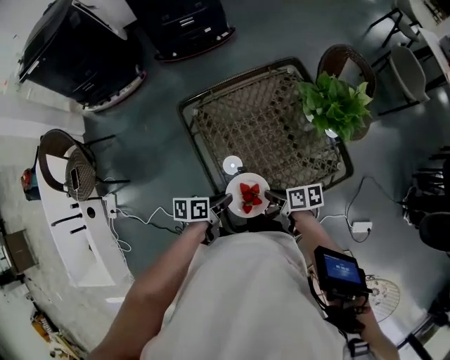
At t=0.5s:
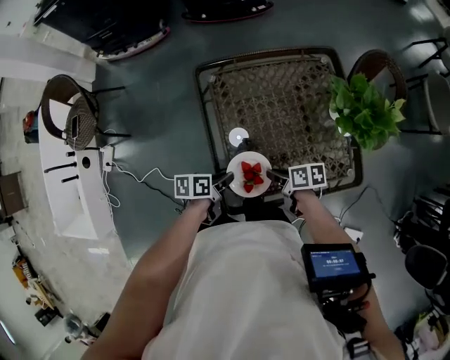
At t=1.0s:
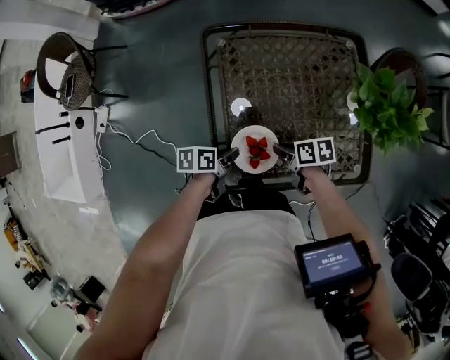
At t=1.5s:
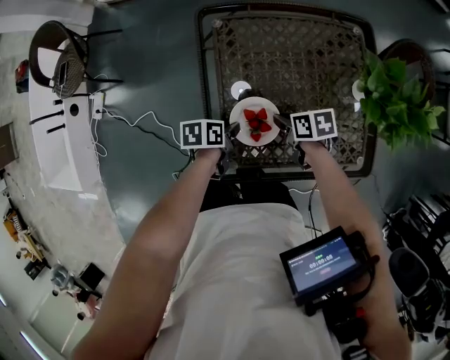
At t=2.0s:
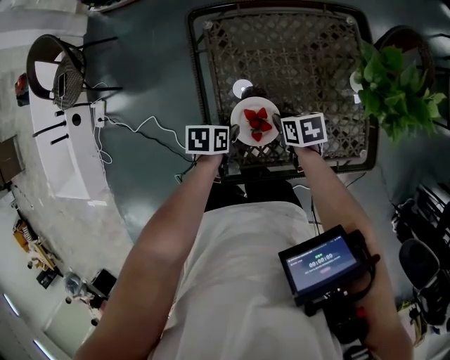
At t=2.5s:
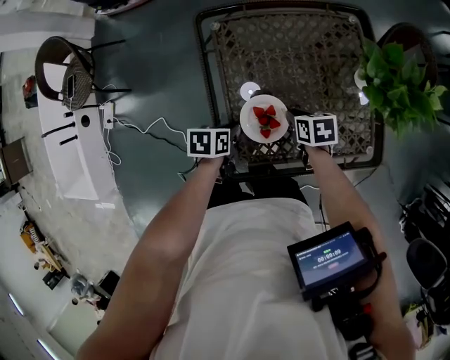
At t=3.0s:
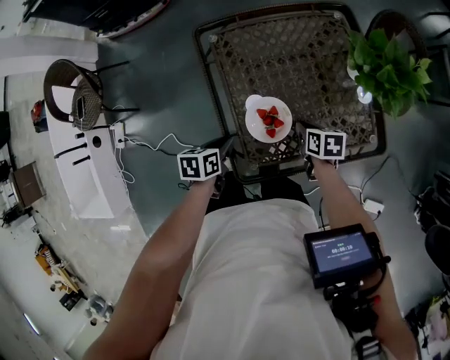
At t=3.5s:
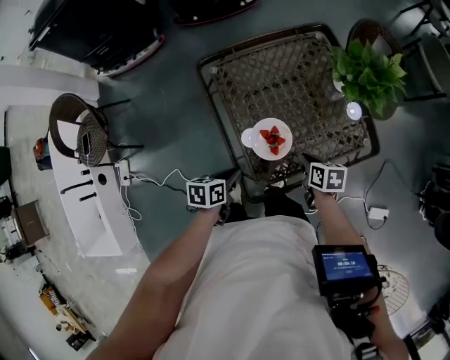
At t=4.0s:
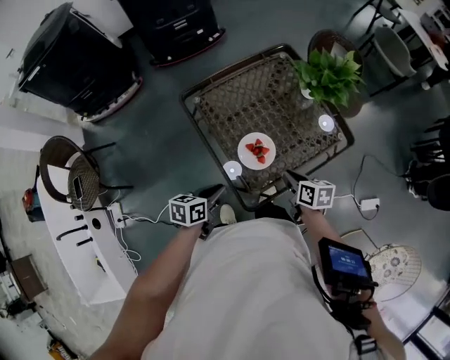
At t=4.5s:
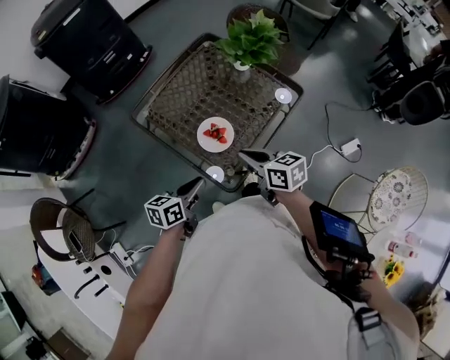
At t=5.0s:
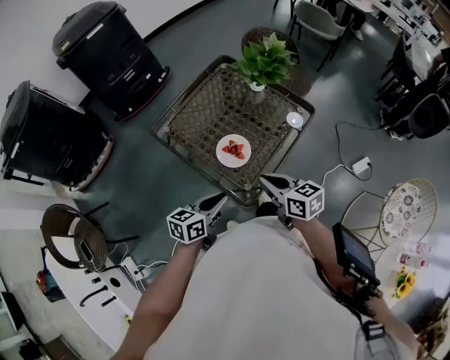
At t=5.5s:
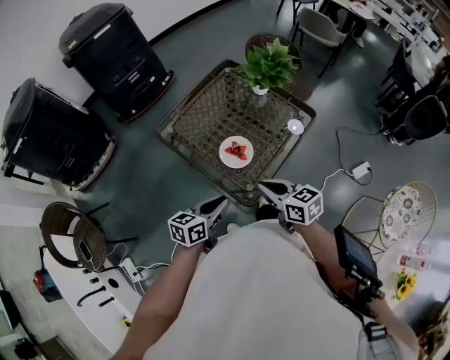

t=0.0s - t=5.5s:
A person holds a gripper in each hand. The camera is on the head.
t=0.0s - t=2.0s: The grippers both shift downward by about 15 cm. The right gripper turns by some 30 degrees. The left gripper changes its angle by approximately 20 degrees.
t=2.0s - t=3.5s: The right gripper moves roughly 10 cm, and changes its angle by some 30 degrees. Meanwhile the left gripper moves about 15 cm.
t=3.5s - t=5.5s: The right gripper shifts about 30 cm upward, backward and to the left, and swivels approximately 30 degrees; the left gripper is displaced upward and backward by approximately 15 cm, and turns by roughly 50 degrees.

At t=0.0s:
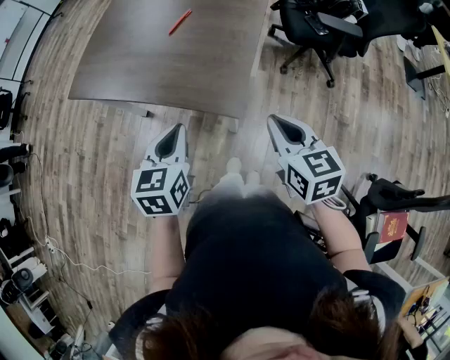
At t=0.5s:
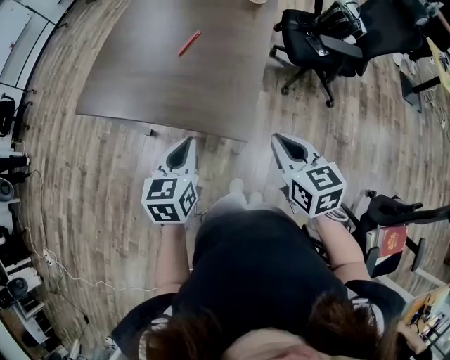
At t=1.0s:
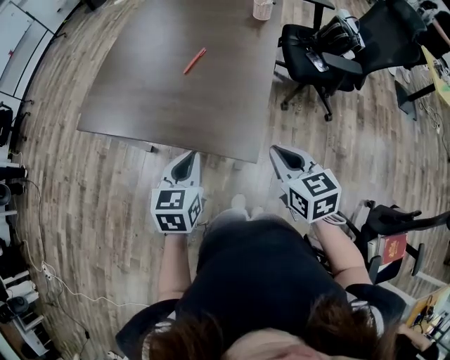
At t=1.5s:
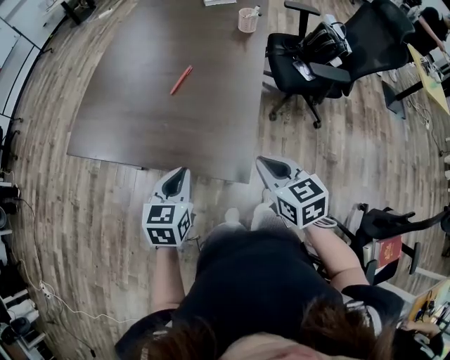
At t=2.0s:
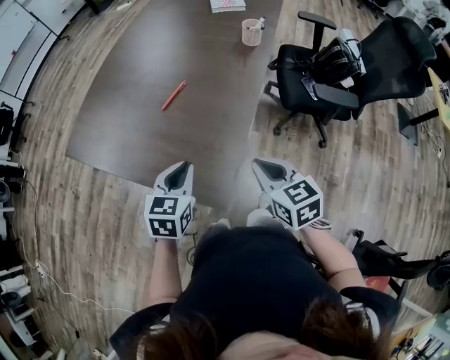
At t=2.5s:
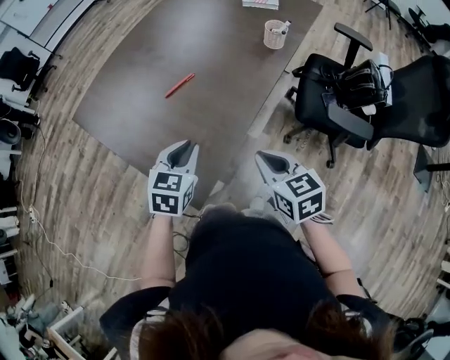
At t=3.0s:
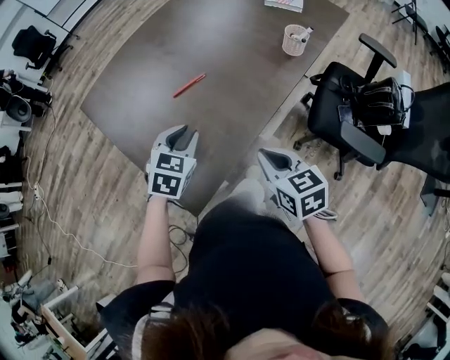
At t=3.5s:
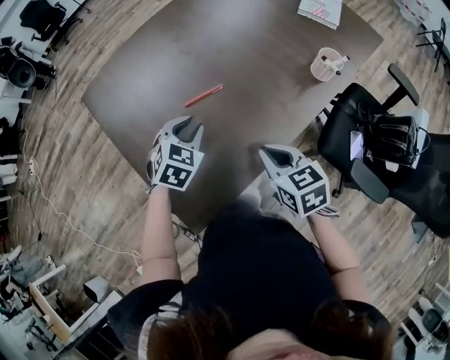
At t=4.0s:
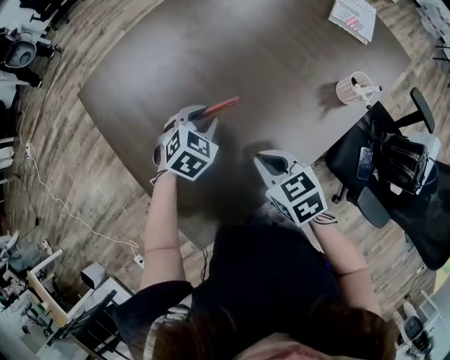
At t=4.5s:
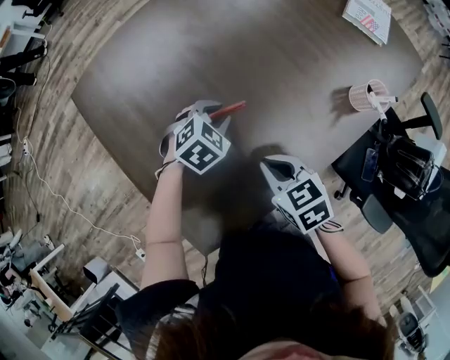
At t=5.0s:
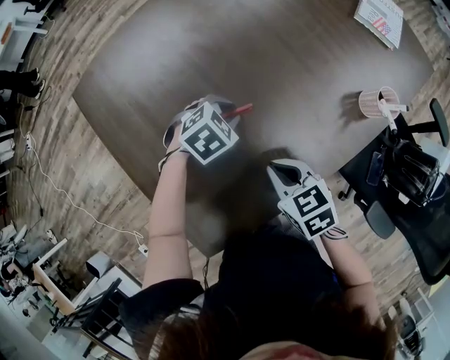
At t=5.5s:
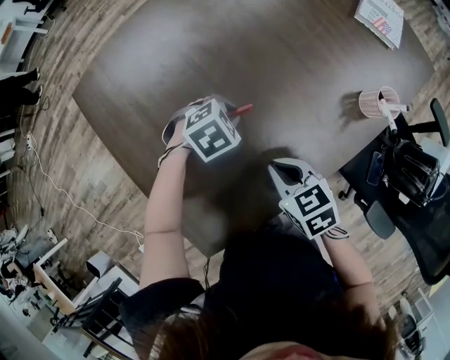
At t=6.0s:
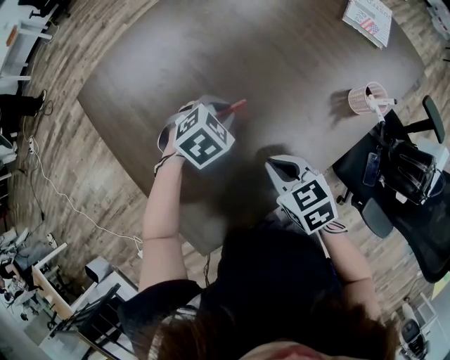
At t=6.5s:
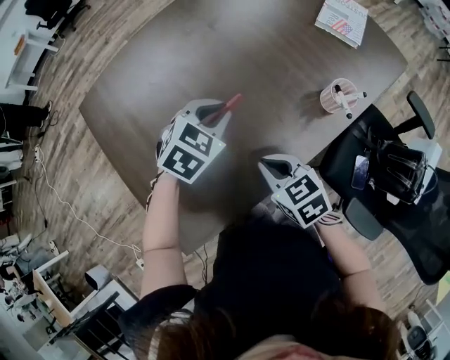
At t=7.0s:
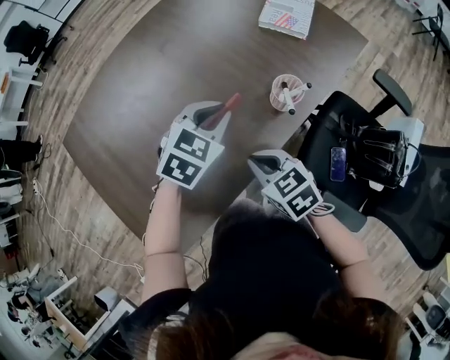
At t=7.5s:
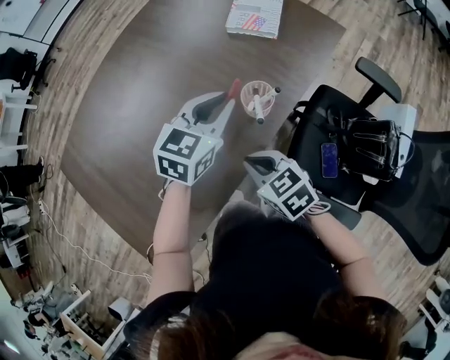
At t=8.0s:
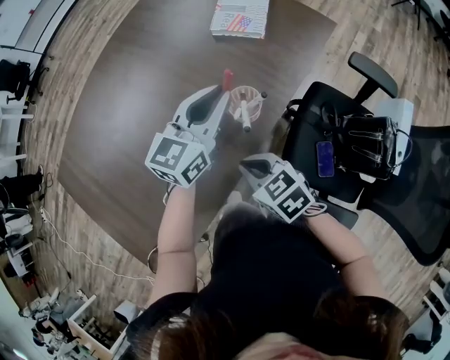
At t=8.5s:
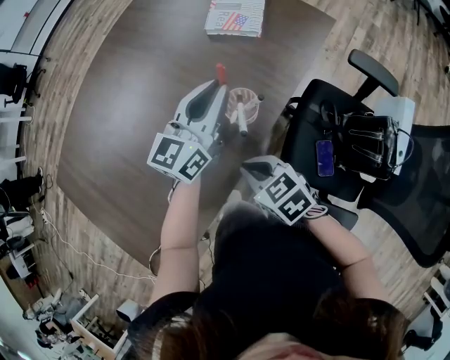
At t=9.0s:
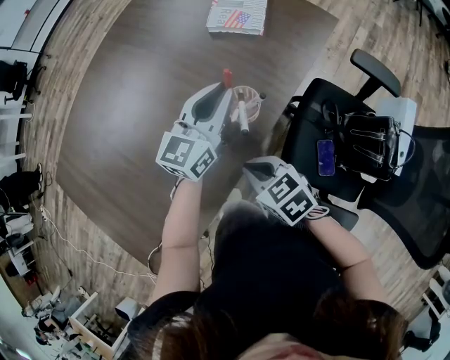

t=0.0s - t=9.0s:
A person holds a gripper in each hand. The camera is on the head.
t=0.0s - t=2.0s: The two grippers go about 15 cm forward.
t=2.0s - t=4.5s: The right gripper shifts by about 30 cm, and swivels some 50 degrees. The left gripper moves about 35 cm, and swivels approximately 30 degrees.
t=4.5s - t=7.0s: The left gripper goes some 30 cm to the right and upward; the right gripper is displaced to the right by approximately 20 cm.
t=7.0s - t=9.0s: The left gripper is displaced to the right and forward by some 15 cm, and angles its fingers upward, by approximately 40 degrees. The right gripper goes some 10 cm to the right.

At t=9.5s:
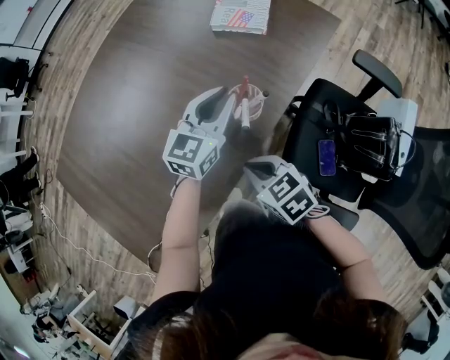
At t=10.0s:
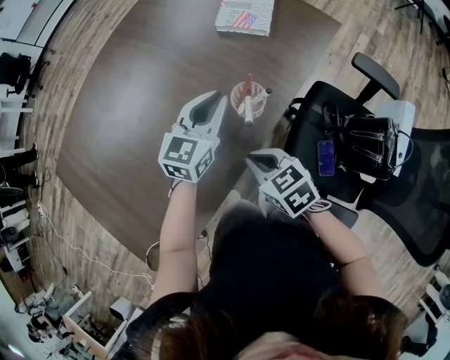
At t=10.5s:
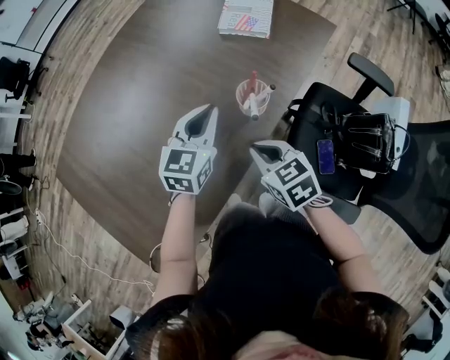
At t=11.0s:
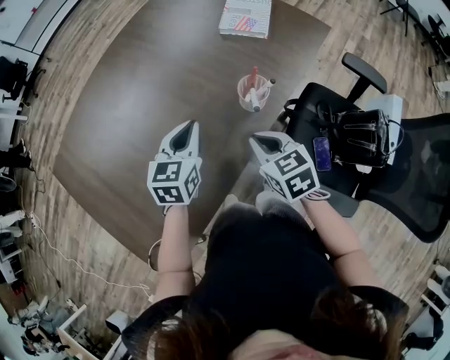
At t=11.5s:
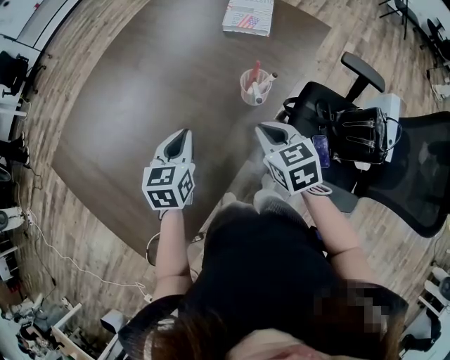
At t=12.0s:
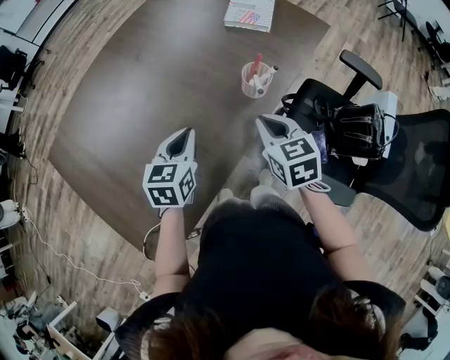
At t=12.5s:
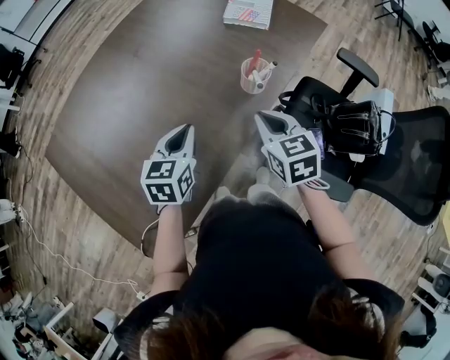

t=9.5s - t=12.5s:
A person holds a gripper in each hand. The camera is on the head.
t=9.5s - t=11.0s: The right gripper shifts by approximately 5 cm. The left gripper heads to the left and backward, covering about 15 cm, and turns by roughly 20 degrees.
t=11.0s - t=12.5s: The left gripper moves backward, some 5 cm.

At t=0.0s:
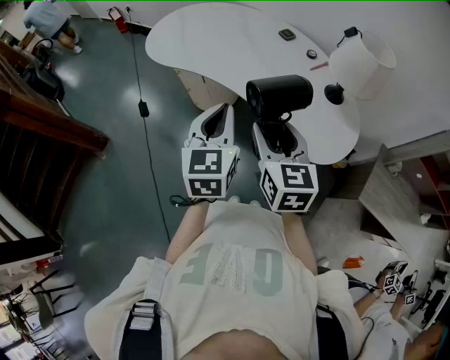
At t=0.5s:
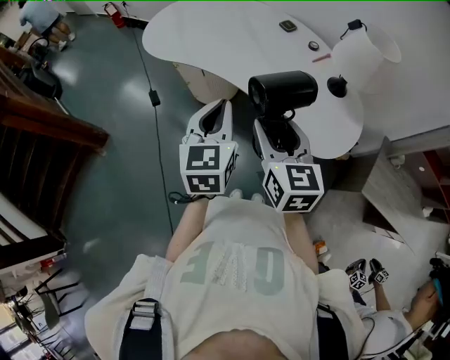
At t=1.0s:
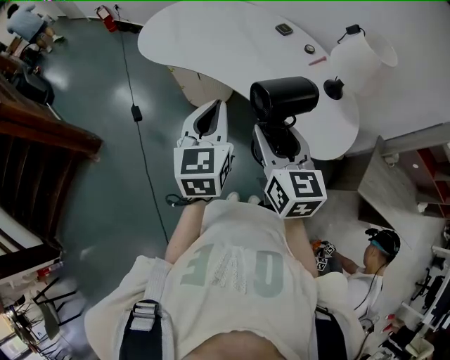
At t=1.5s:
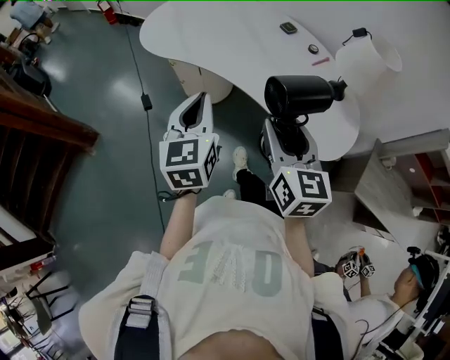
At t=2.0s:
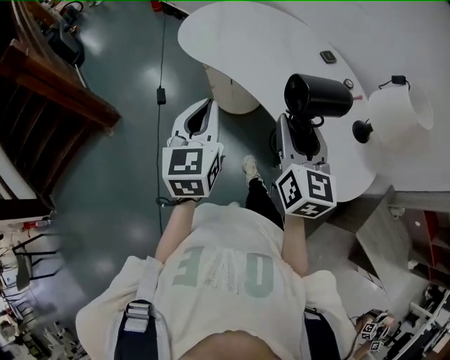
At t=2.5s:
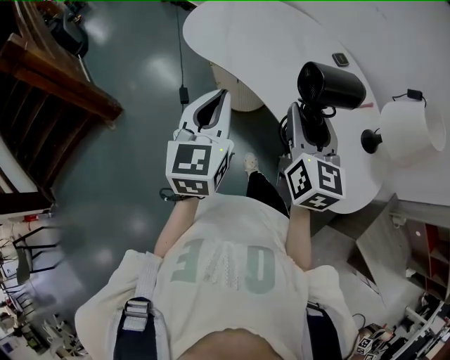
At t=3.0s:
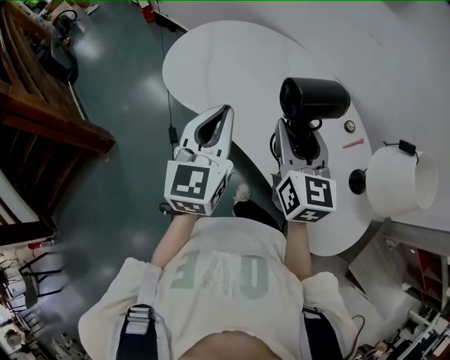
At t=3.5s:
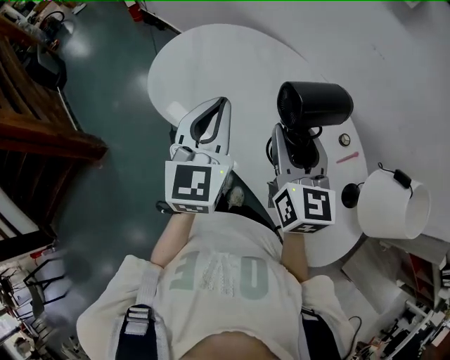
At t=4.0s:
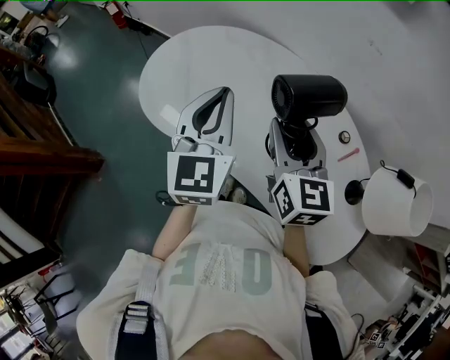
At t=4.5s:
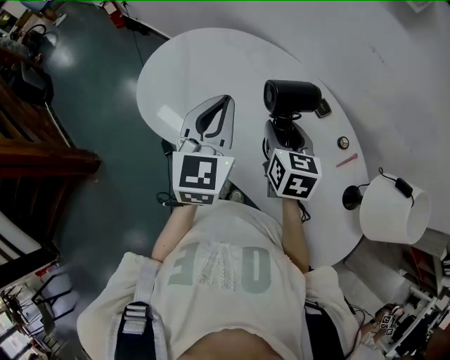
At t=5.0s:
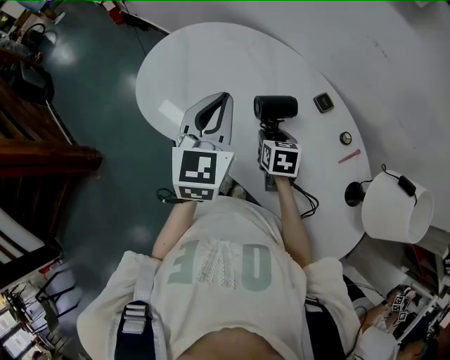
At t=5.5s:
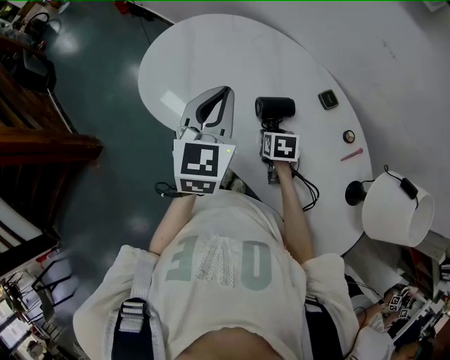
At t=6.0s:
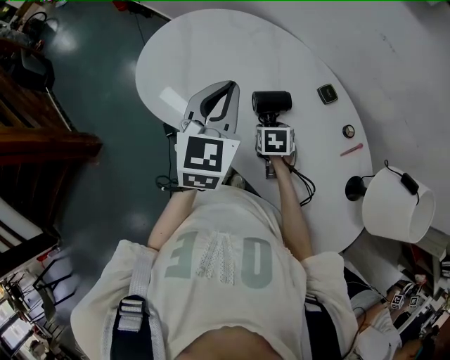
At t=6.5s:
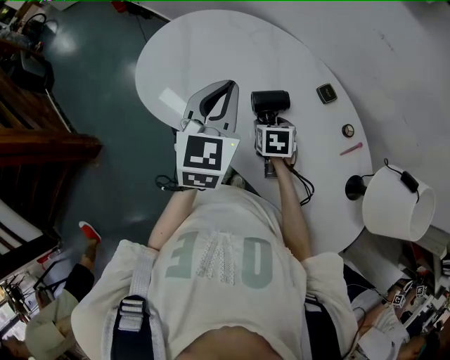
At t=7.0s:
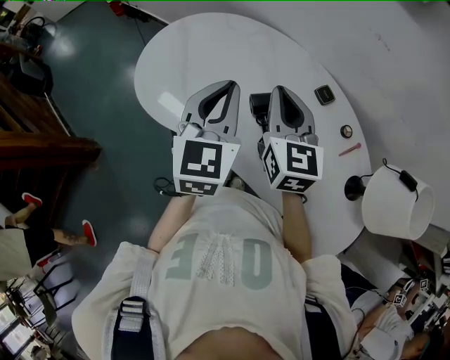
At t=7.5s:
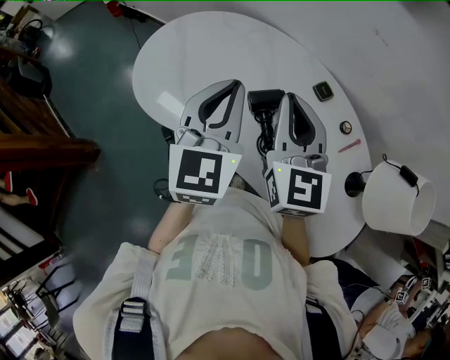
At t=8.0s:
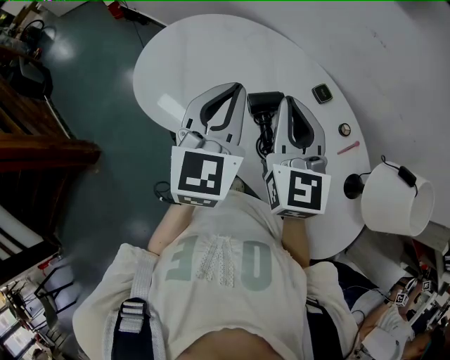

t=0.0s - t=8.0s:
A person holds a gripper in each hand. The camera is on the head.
t=0.0s - t=2.0s: The right gripper travels forward by about 10 cm. The left gripper heads to the left and forward, covering roughly 15 cm.
t=2.0s - t=4.0s: Both grippers move forward, some 30 cm.
t=4.0s - t=6.0s: The right gripper goes approximately 30 cm downward, and tilts its fingers about 50 degrees downward, while the left gripper travels downward by about 5 cm.
t=6.0s - t=8.0s: The left gripper shifts about 5 cm upward. The right gripper goes approximately 30 cm upward, tilts its fingers some 60 degrees upward, and closes.
